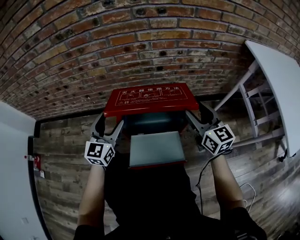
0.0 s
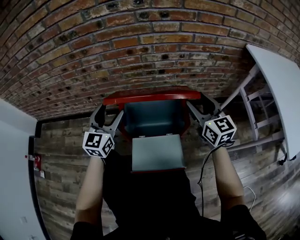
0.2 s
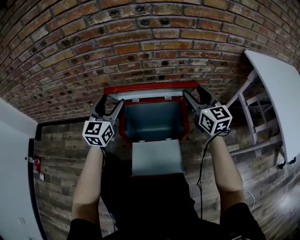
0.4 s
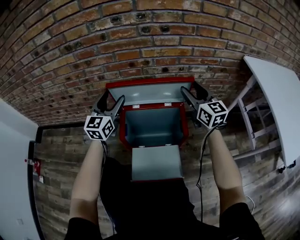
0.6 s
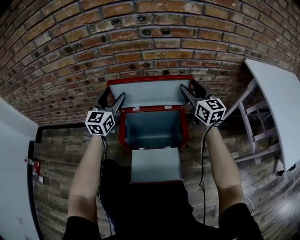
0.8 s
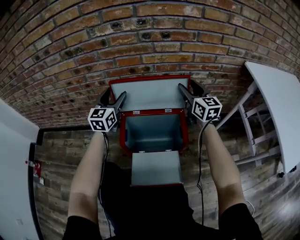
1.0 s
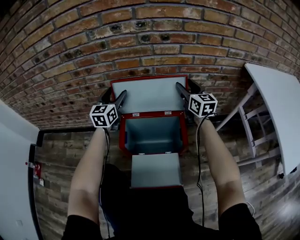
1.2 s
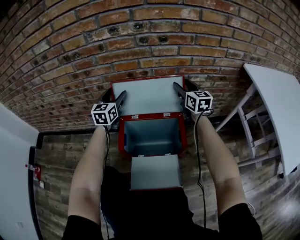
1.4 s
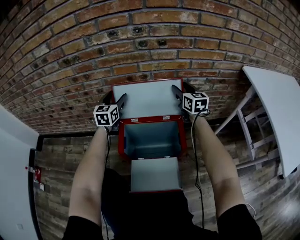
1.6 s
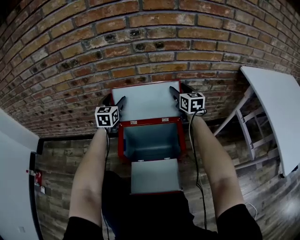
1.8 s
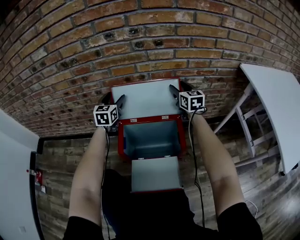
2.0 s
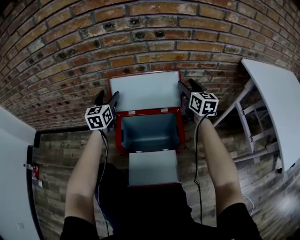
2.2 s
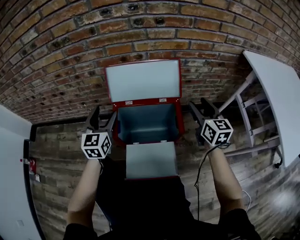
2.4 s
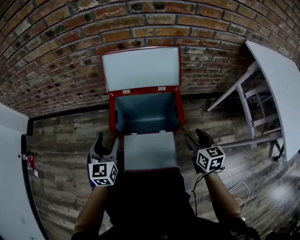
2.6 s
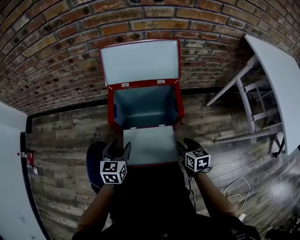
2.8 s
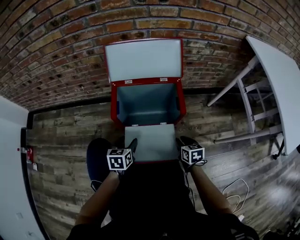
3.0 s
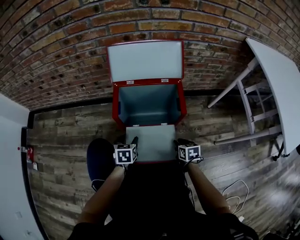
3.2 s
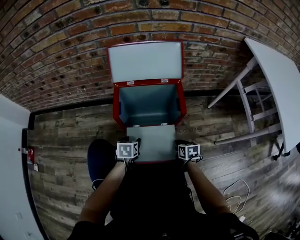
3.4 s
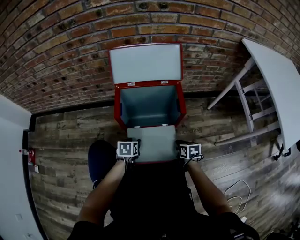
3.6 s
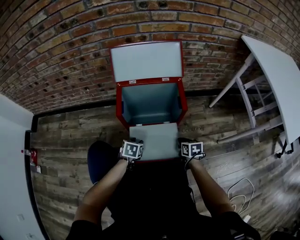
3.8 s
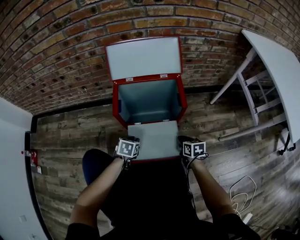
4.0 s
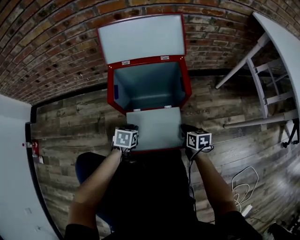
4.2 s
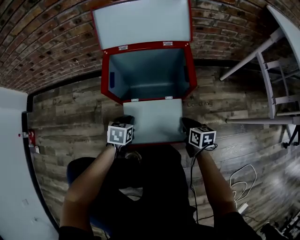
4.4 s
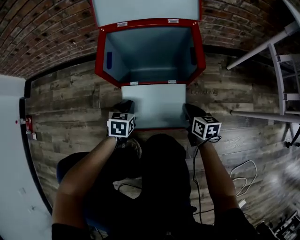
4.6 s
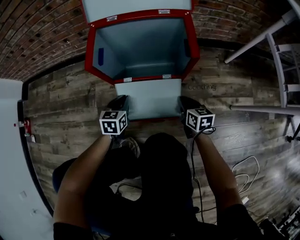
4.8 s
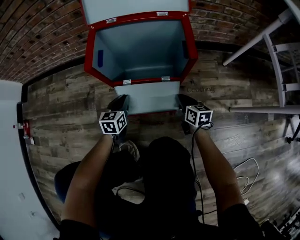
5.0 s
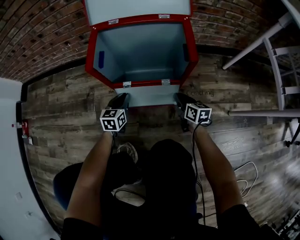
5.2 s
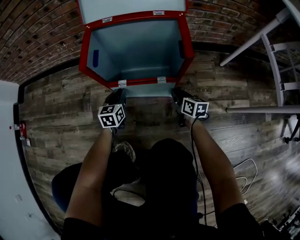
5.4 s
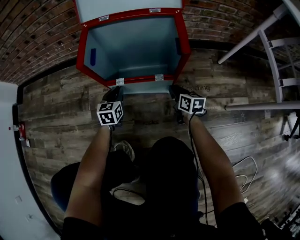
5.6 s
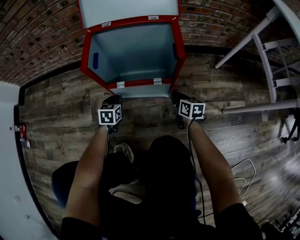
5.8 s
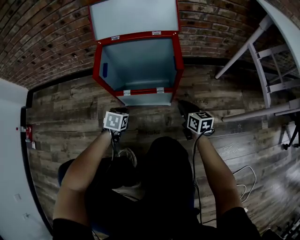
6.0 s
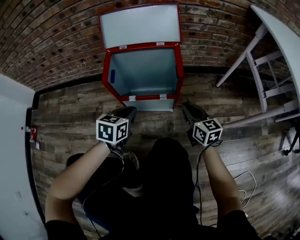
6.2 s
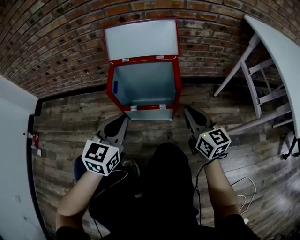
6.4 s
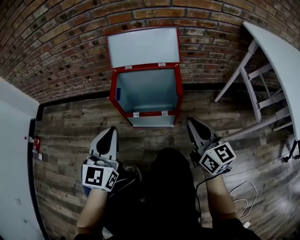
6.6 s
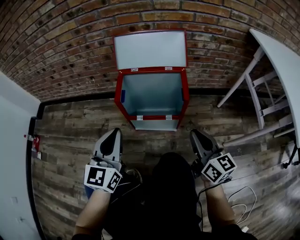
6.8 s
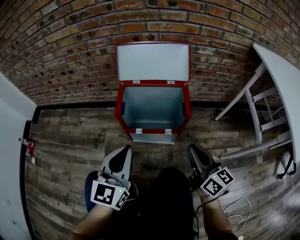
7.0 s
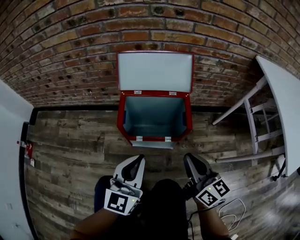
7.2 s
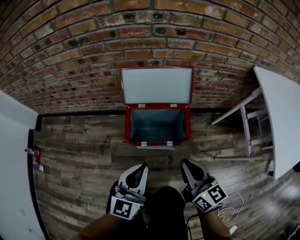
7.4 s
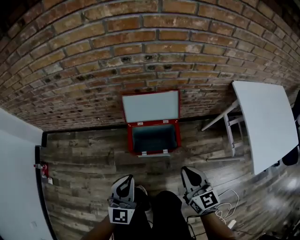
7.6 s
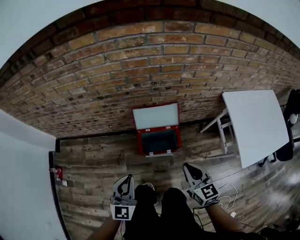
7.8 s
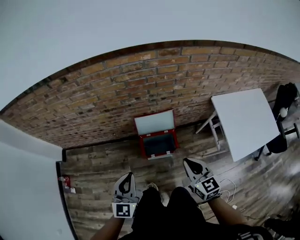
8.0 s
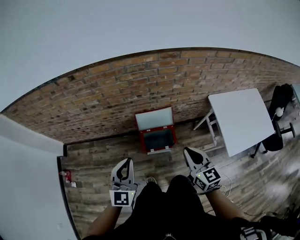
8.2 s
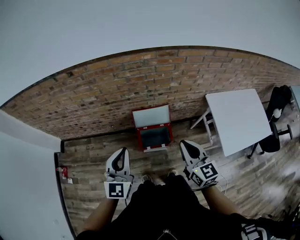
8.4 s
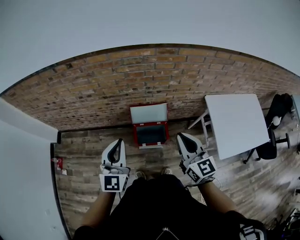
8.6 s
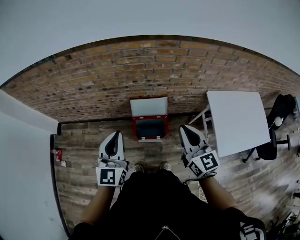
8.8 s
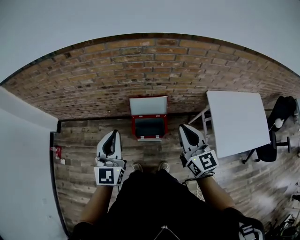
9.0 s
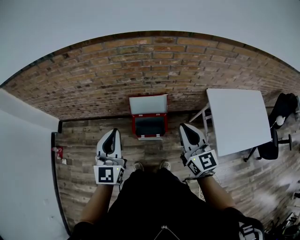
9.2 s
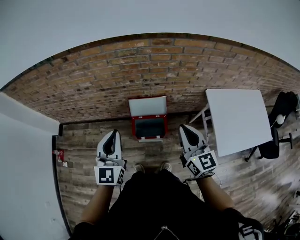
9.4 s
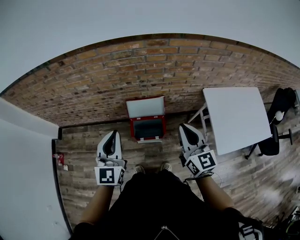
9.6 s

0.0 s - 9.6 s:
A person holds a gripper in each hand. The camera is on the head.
0.0 s - 1.6 s: The grippers both shift forward by approximately 25 cm.
1.6 s - 3.2 s: The grippers both shift backward and downward by approximately 50 cm. The right gripper angles its fingers downward, by some 40 degrees, and closes; the left gripper tips its fingers downward by about 40 degrees.
3.2 s - 4.8 s: The grippers both shift downward by some 10 cm. The left gripper closes up, while the right gripper closes.
4.8 s - 6.4 s: The two grippers go approximately 30 cm upward. The right gripper changes its angle by some 30 degrees. Meanwhile the left gripper turns by some 30 degrees.
6.4 s - 8.0 s: Both grippers travel together upward, about 60 cm.
8.0 s - 9.6 s: The right gripper shifts some 15 cm upward and to the right. The left gripper is displaced upward, to the right and forward by about 15 cm.

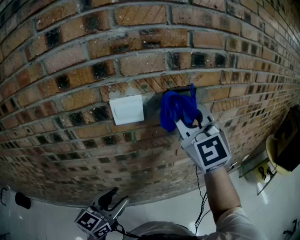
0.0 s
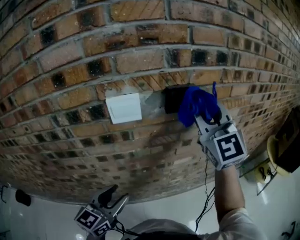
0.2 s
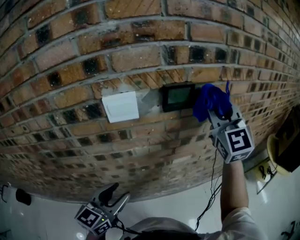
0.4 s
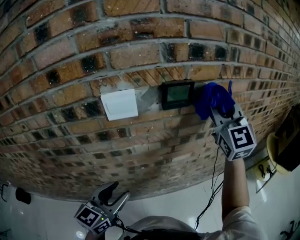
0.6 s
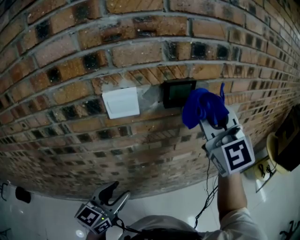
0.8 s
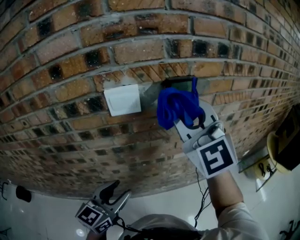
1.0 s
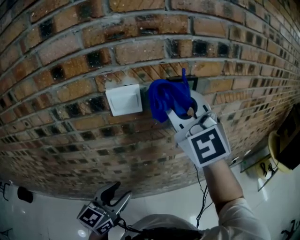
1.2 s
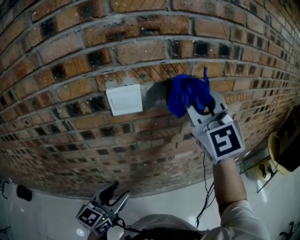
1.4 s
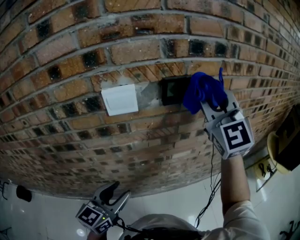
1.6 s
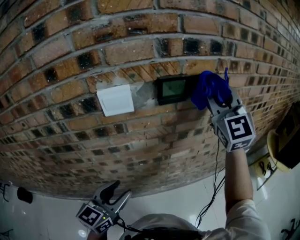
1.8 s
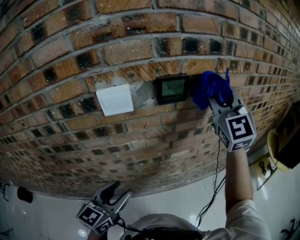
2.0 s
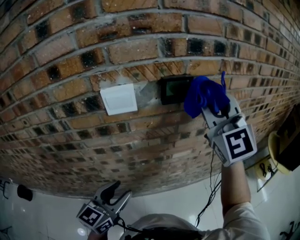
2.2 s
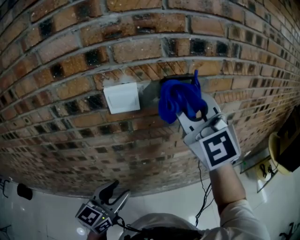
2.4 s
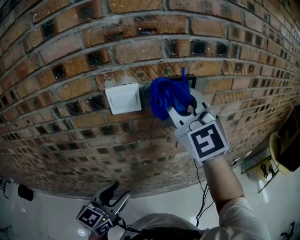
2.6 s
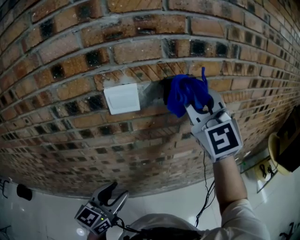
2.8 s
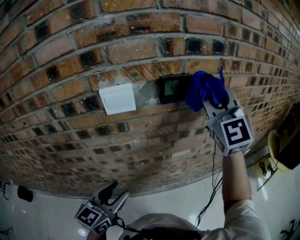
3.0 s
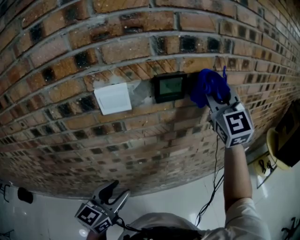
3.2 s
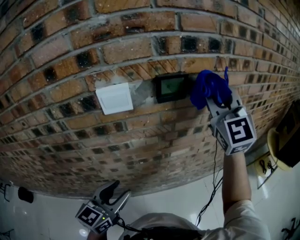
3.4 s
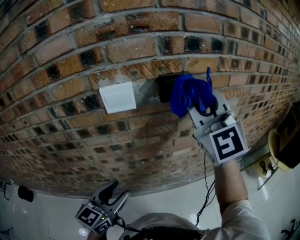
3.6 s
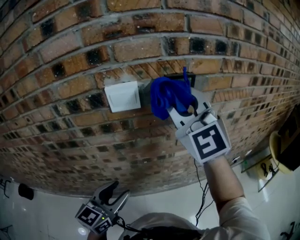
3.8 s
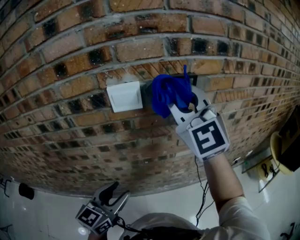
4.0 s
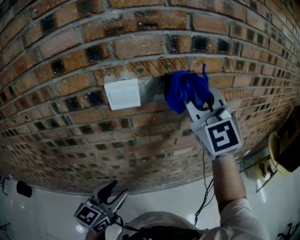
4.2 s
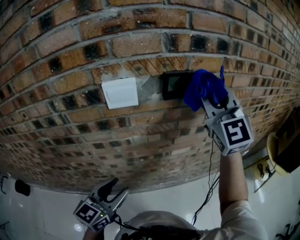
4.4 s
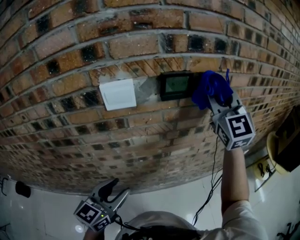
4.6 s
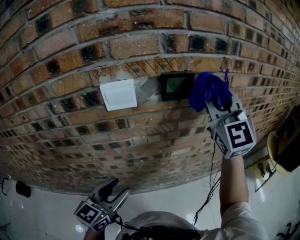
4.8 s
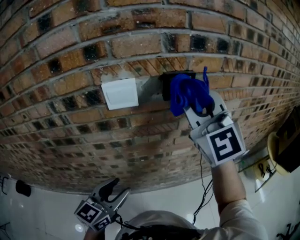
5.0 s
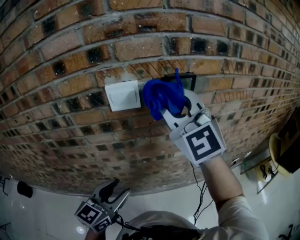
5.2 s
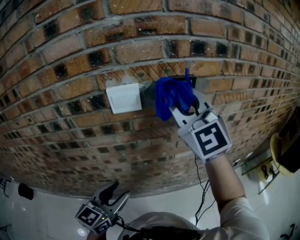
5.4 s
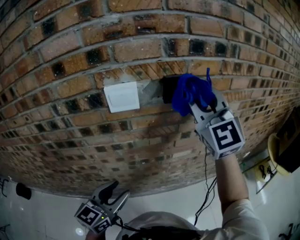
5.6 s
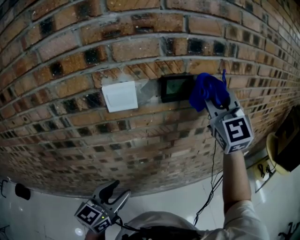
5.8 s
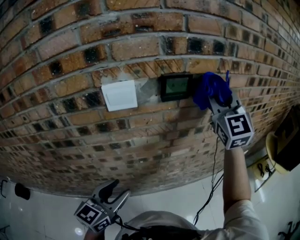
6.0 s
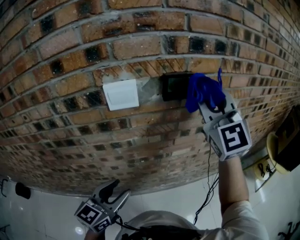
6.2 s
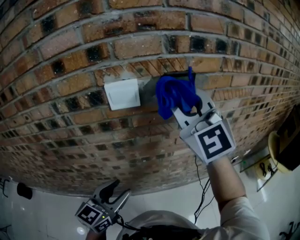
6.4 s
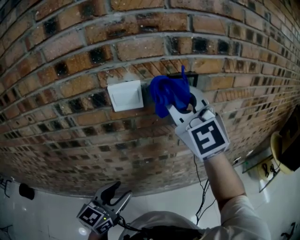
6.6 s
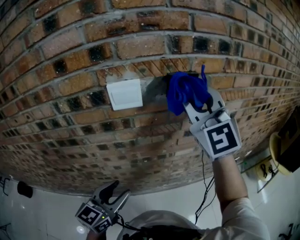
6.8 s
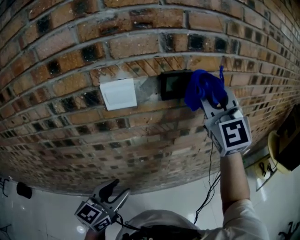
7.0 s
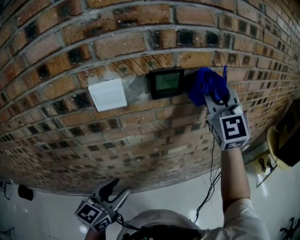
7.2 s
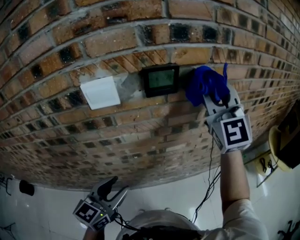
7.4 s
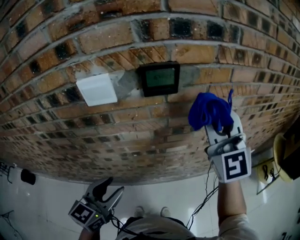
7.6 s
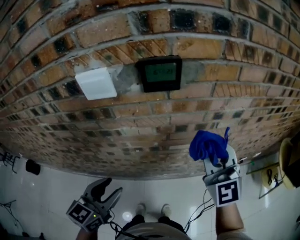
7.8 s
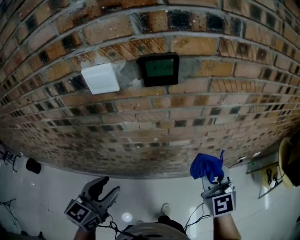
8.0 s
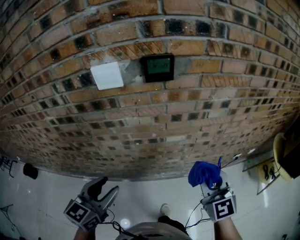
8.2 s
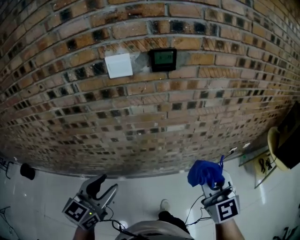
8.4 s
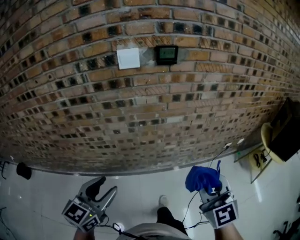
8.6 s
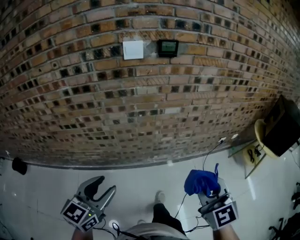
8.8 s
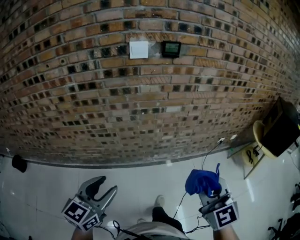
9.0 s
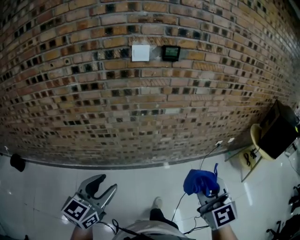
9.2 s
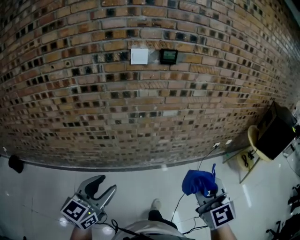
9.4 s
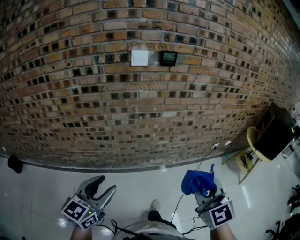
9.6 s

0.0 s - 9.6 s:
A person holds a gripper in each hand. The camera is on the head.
0.0 s - 1.6 s: The right gripper moves left and right over about 15 cm, changing direction 2 times.
1.6 s - 3.2 s: The right gripper swings left and right, about 15 cm each way, with 2 reversals.
3.2 s - 4.8 s: The right gripper moves some 15 cm to the left and comes back.
4.8 s - 6.4 s: The right gripper swings left and right, about 15 cm each way, with 2 reversals.
6.4 s - 8.0 s: The right gripper shifts roughly 30 cm downward and to the right, and swivels about 30 degrees; the left gripper shifts some 5 cm to the right.
8.0 s - 9.6 s: Both grippers travel together backward, approximately 40 cm.

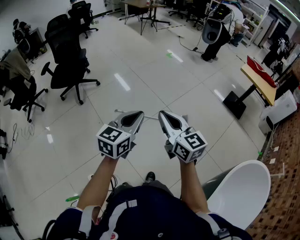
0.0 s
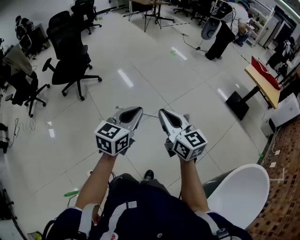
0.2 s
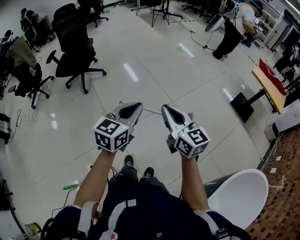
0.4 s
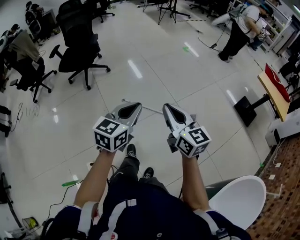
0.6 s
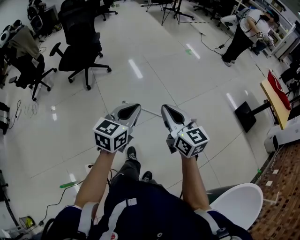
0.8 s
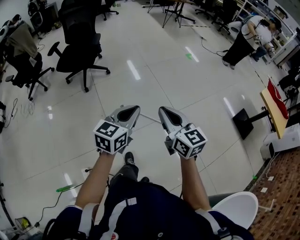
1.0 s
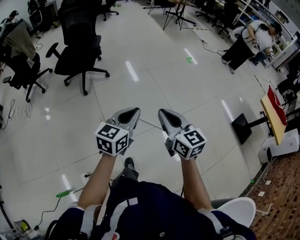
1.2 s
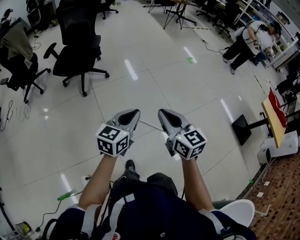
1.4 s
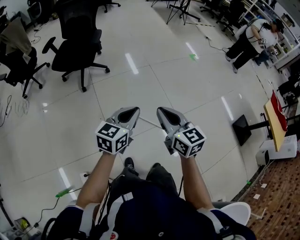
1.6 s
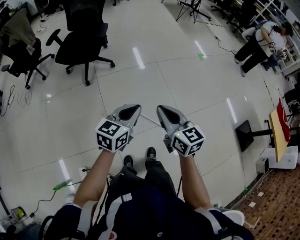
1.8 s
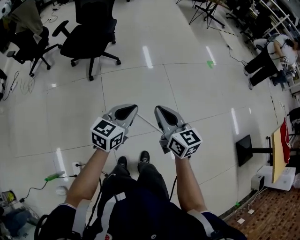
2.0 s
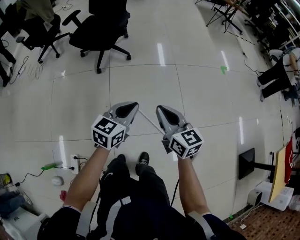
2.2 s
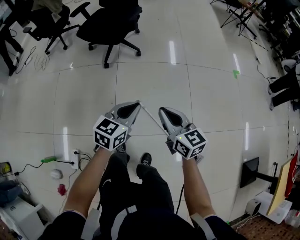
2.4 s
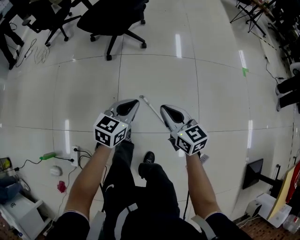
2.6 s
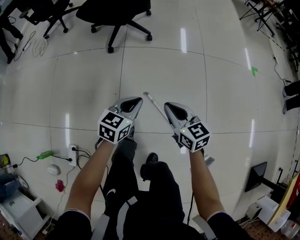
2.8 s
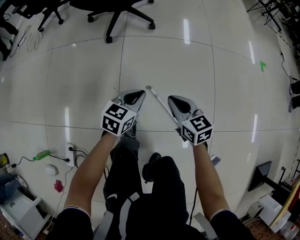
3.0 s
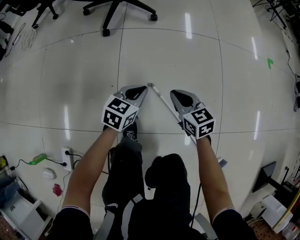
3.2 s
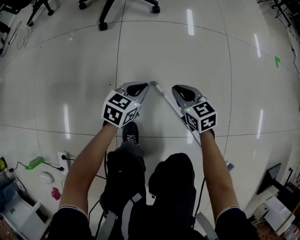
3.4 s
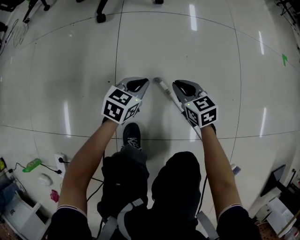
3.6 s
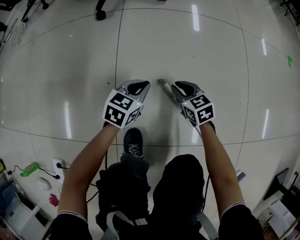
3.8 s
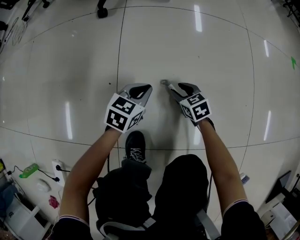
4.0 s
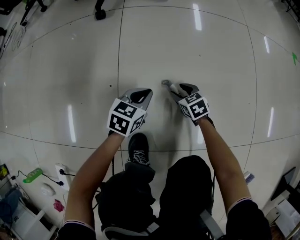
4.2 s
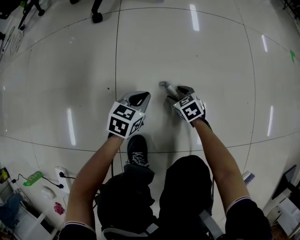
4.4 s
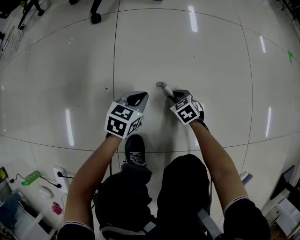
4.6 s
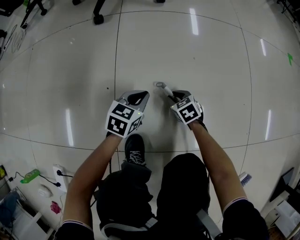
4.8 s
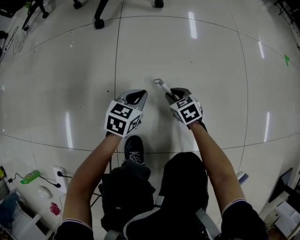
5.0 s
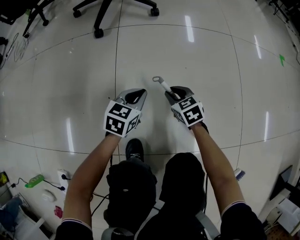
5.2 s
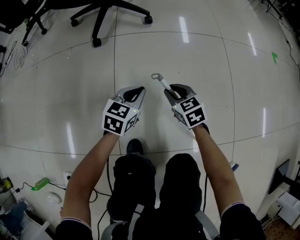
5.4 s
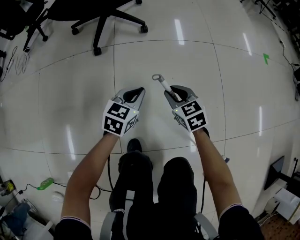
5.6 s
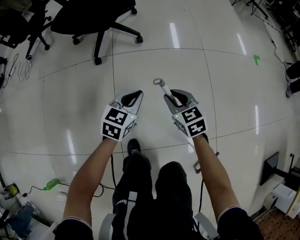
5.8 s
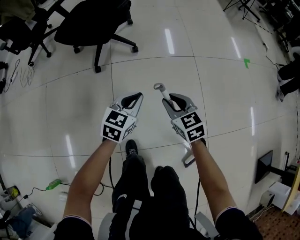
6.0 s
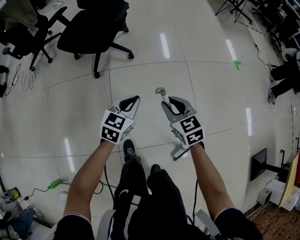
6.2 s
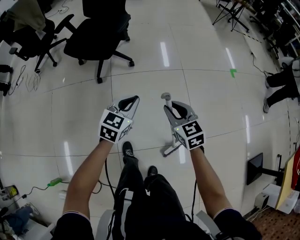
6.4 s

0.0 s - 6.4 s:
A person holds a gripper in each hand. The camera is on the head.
0.0 s - 1.6 s: Both grippers travel together forward and to the left, about 30 cm.
1.6 s - 3.2 s: Both grippers travel together downward, roughly 50 cm. The right gripper changes its angle by some 30 degrees. The left gripper changes its angle by approximately 30 degrees.
3.2 s - 4.8 s: Both grippers move downward, some 30 cm. The right gripper swivels some 30 degrees, and opens up.
4.8 s - 6.4 s: Both grippers travel together upward, approximately 60 cm. The right gripper turns by about 30 degrees. Meanwhile the left gripper changes its angle by approximately 20 degrees.
